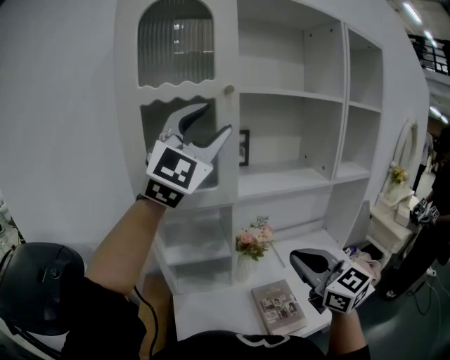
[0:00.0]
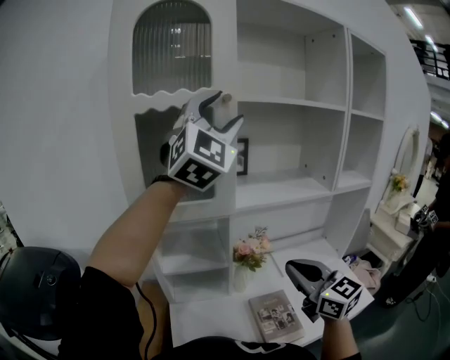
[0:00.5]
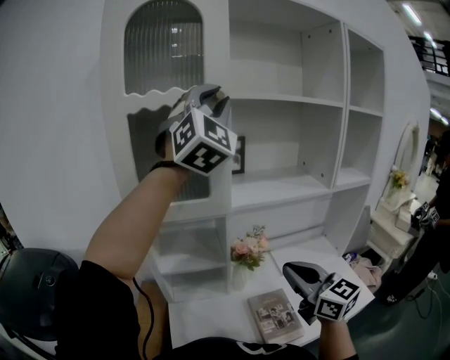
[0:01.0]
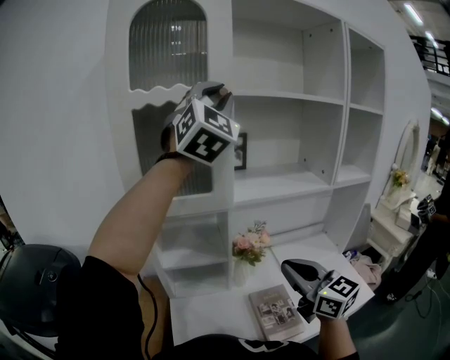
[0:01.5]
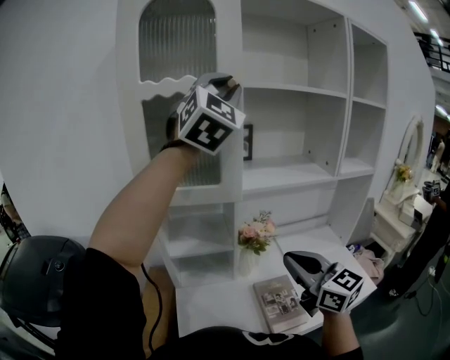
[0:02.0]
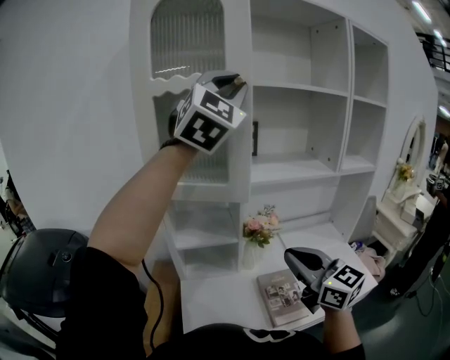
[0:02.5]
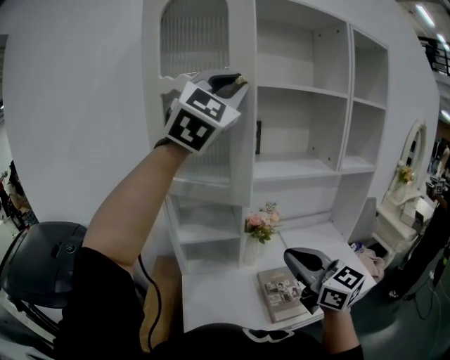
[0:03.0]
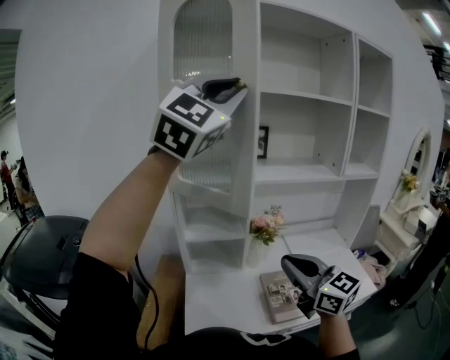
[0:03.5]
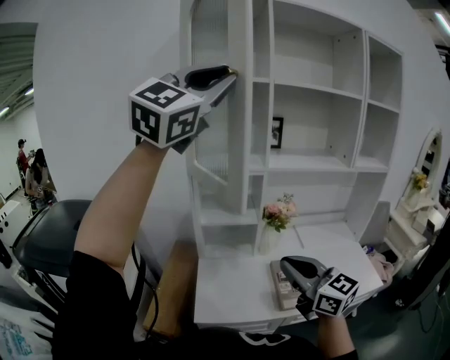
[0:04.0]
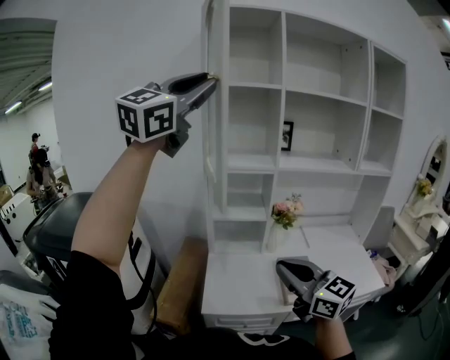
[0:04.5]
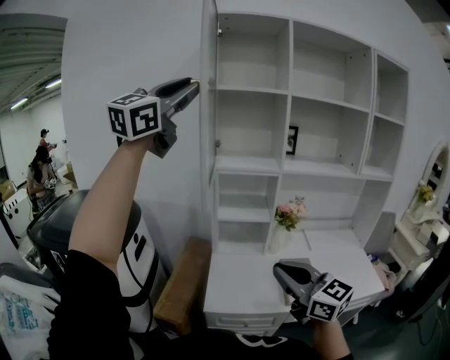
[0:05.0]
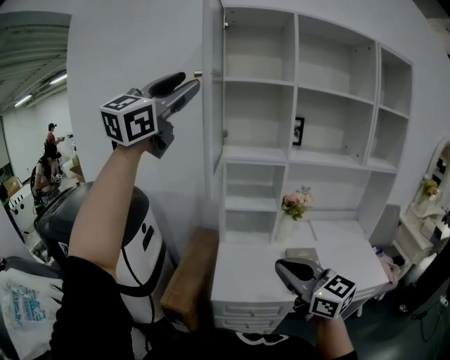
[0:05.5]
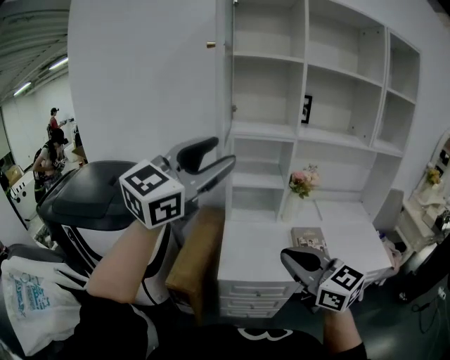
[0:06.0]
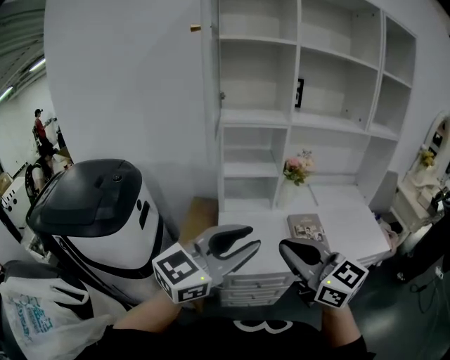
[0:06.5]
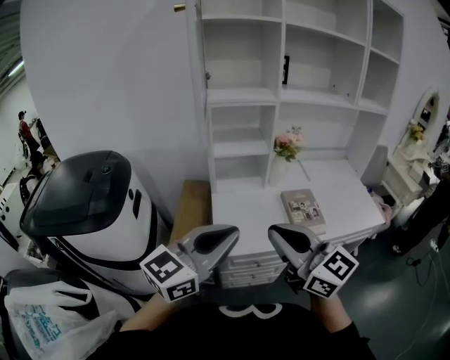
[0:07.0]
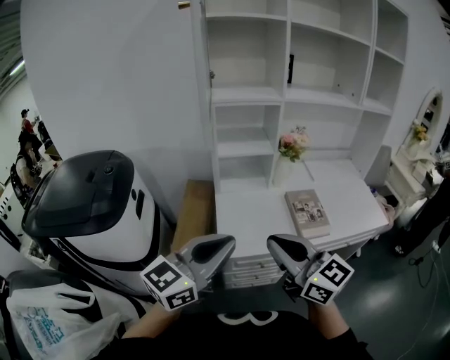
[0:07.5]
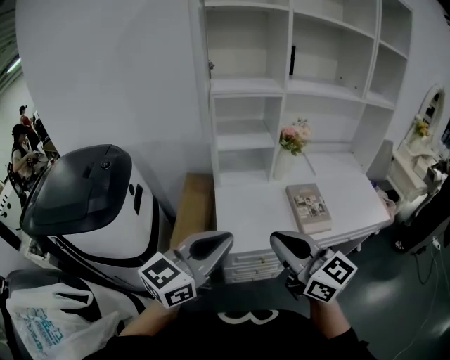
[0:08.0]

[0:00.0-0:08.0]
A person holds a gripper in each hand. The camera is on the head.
0:00.0 to 0:02.0: The left gripper heads upward and forward, covering roughly 10 cm, and closes its fingers.
0:02.0 to 0:04.0: The left gripper heads backward and to the left, covering approximately 25 cm, and swivels roughly 20 degrees, while the right gripper goes some 15 cm backward and to the left.
0:04.0 to 0:06.0: The left gripper goes about 30 cm downward, backward and to the left, turns by about 20 degrees, and opens up, while the right gripper goes some 15 cm backward and to the left.
0:06.0 to 0:08.0: The right gripper moves roughly 5 cm; the left gripper shifts about 25 cm downward, swivels approximately 30 degrees, and closes.

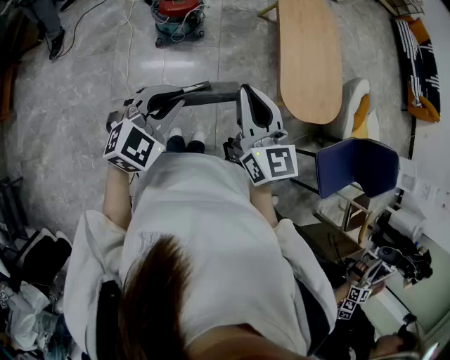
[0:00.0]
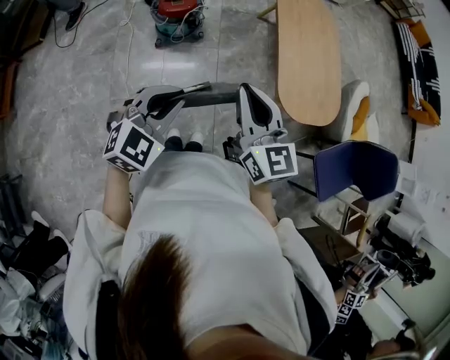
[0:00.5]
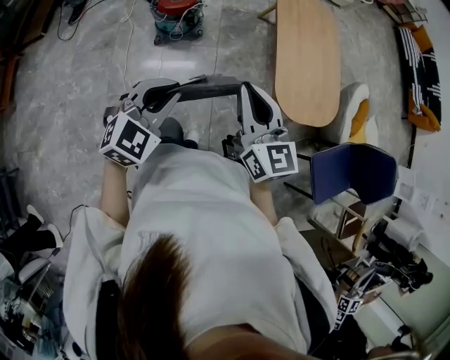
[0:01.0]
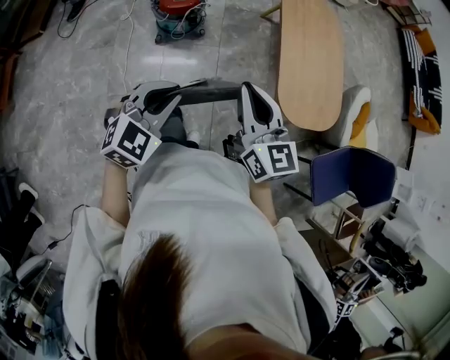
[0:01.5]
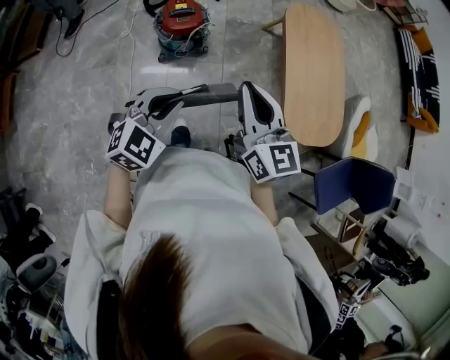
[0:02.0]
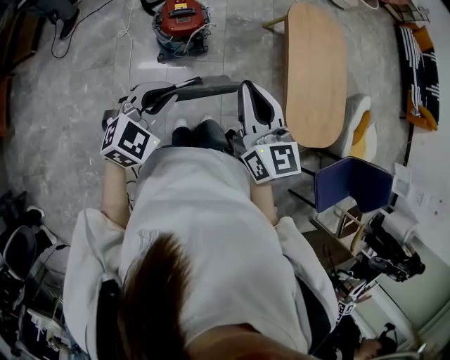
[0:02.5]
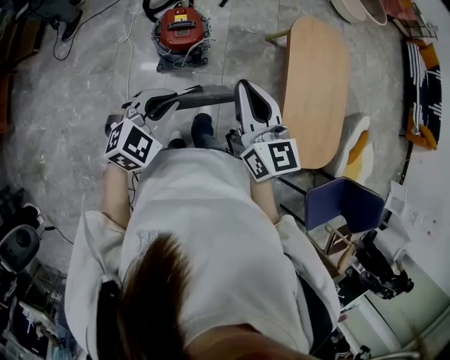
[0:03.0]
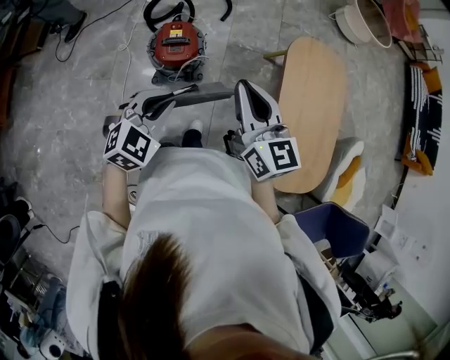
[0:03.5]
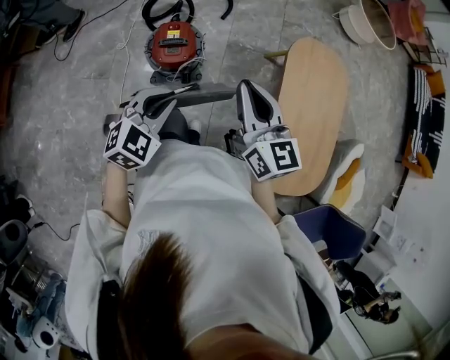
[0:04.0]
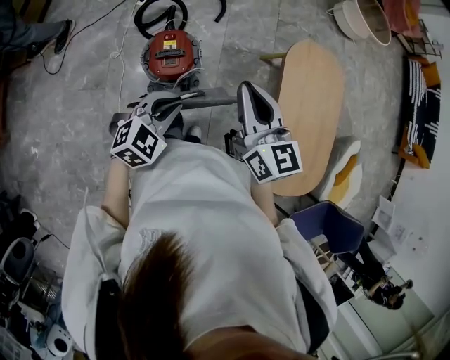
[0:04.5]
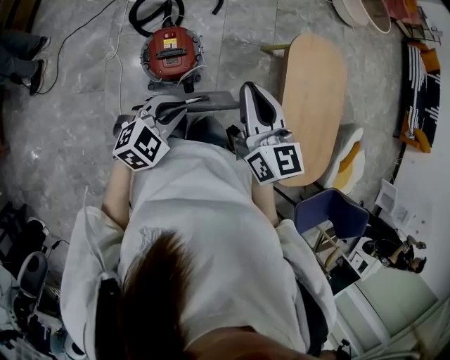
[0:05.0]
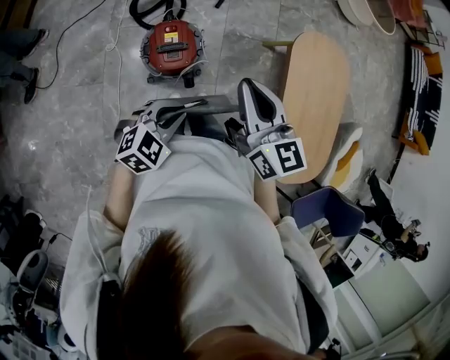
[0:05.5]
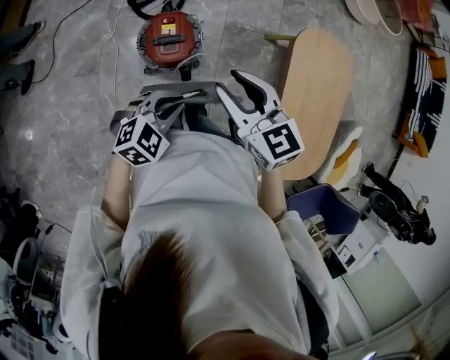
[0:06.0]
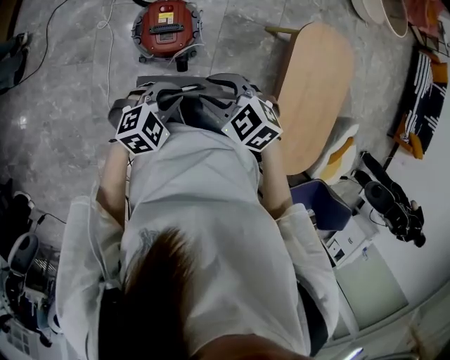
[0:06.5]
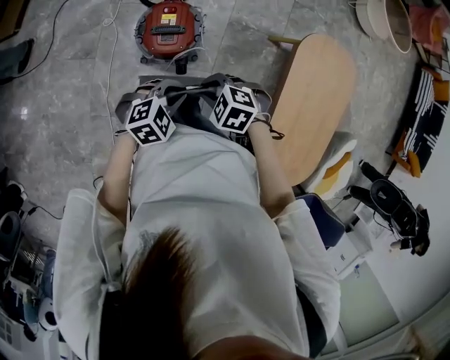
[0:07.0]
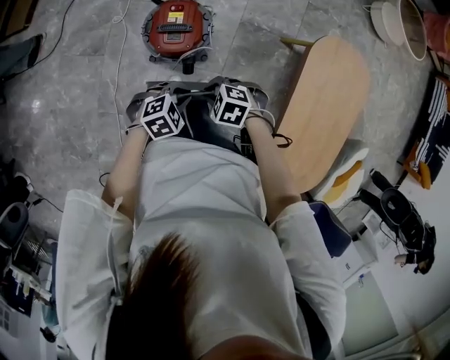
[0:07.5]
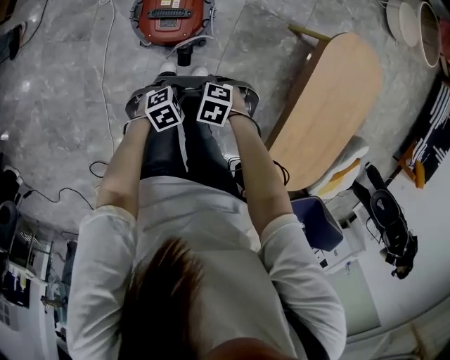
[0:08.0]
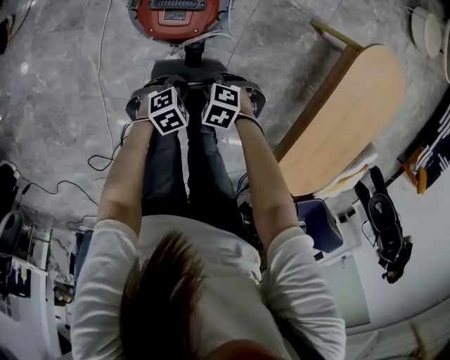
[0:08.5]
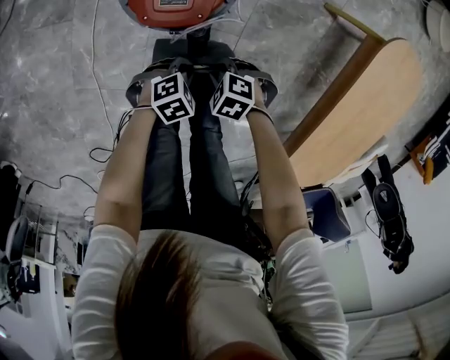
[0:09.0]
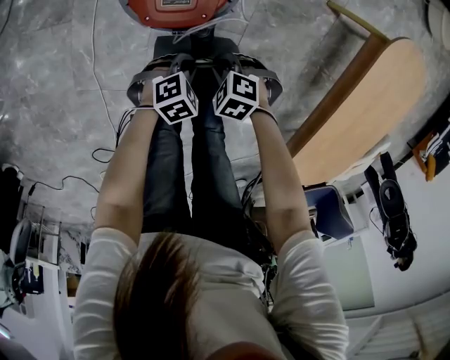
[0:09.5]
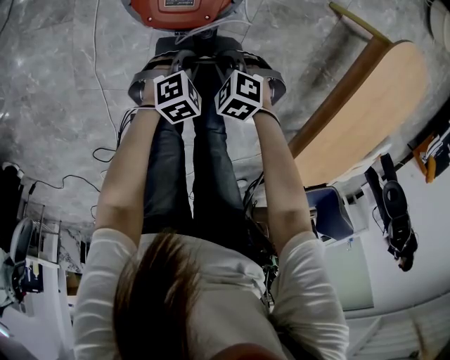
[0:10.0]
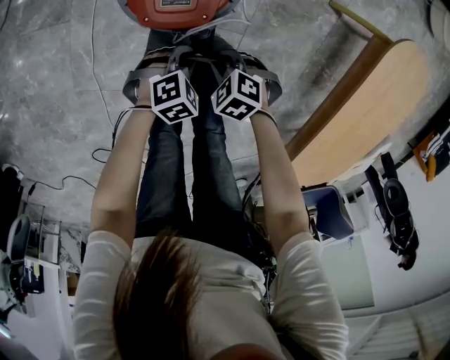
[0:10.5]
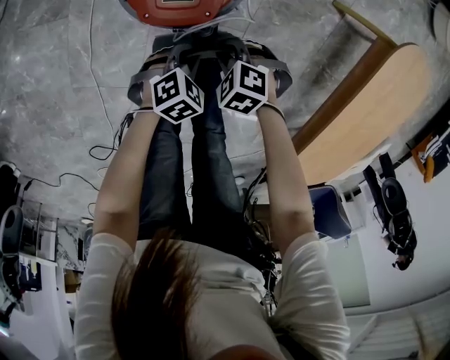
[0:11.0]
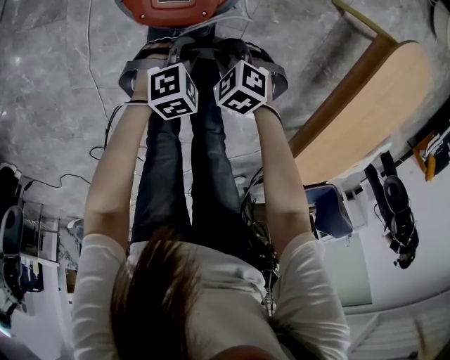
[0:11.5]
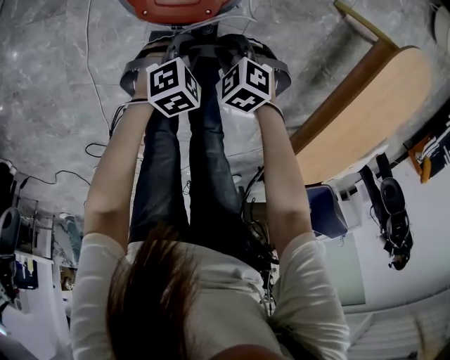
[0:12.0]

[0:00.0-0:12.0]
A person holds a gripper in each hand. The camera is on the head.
0:00.0 to 0:02.0: The two grippers go roughly 15 cm forward and to the left.
0:02.0 to 0:04.0: Both grippers travel together forward, approximately 25 cm.
0:04.0 to 0:06.0: The left gripper travels downward and forward by some 10 cm; the right gripper shifts about 15 cm to the left, forward and downward, rotates about 30 degrees, and opens up.
0:06.0 to 0:08.0: The two grippers go approximately 35 cm downward. The right gripper tips its fingers downward by about 40 degrees, and closes its fingers, while the left gripper changes its angle by about 30 degrees.
0:08.0 to 0:10.0: Both grippers move downward, about 15 cm.
0:10.0 to 0:12.0: The grippers make only small movements.

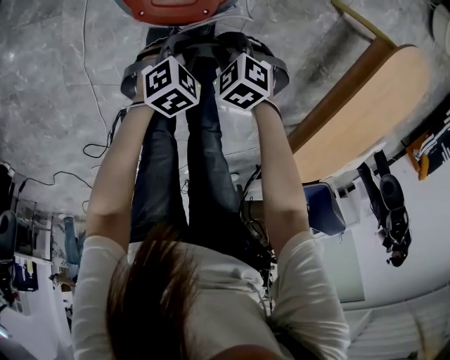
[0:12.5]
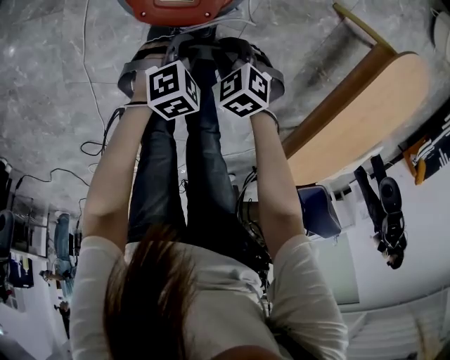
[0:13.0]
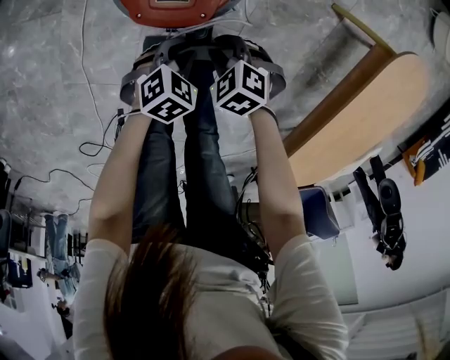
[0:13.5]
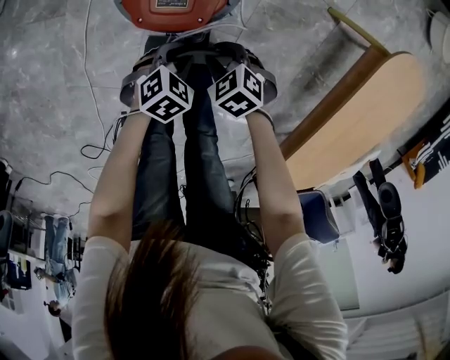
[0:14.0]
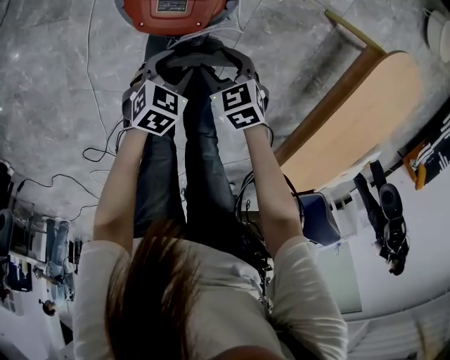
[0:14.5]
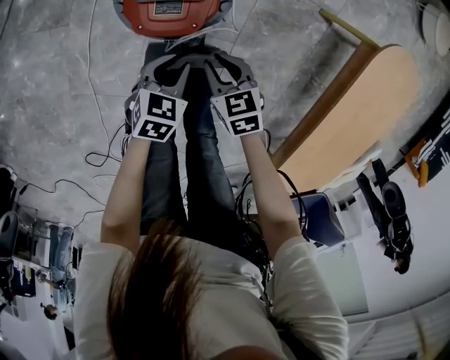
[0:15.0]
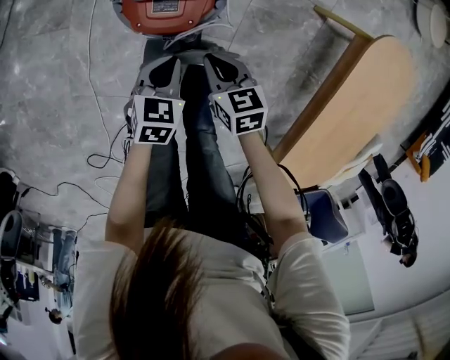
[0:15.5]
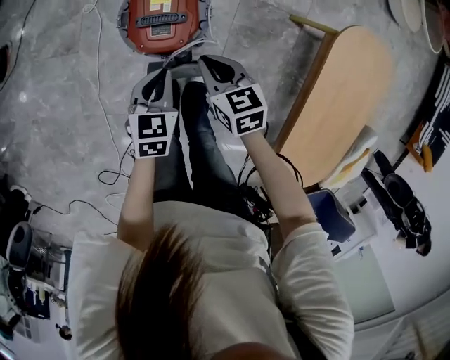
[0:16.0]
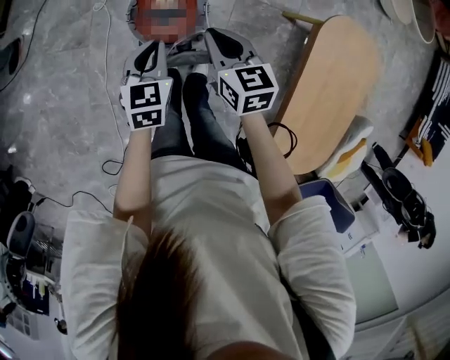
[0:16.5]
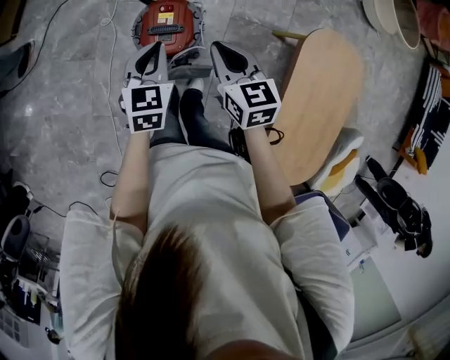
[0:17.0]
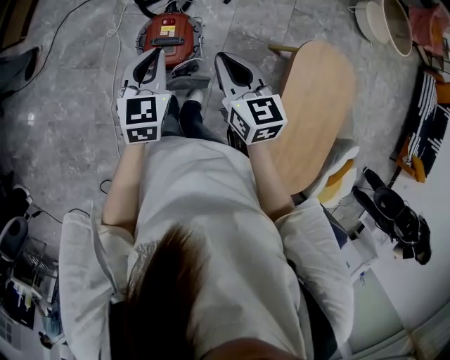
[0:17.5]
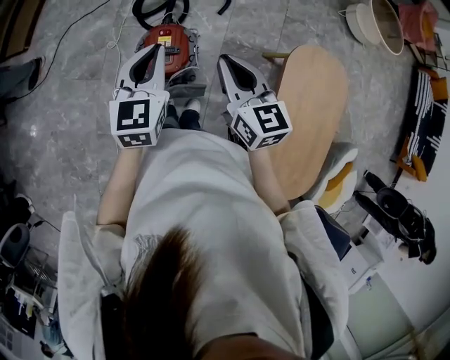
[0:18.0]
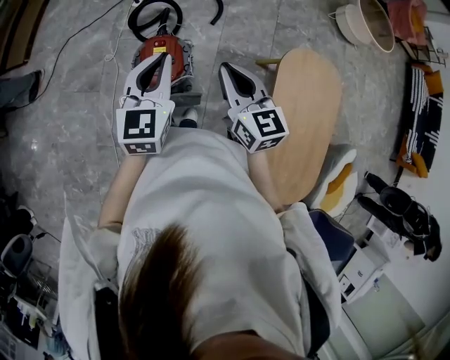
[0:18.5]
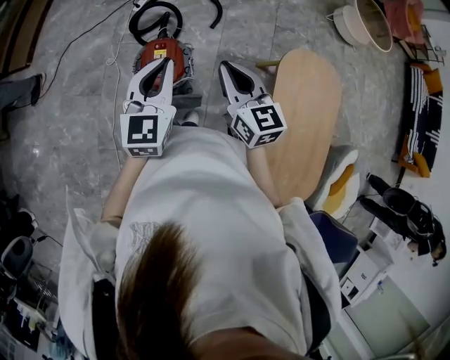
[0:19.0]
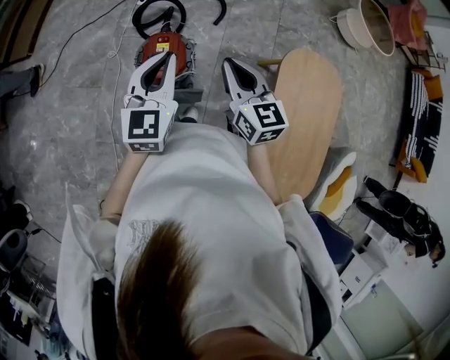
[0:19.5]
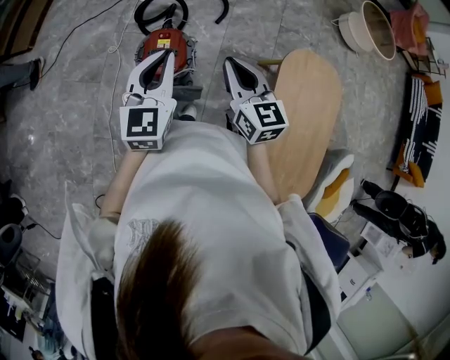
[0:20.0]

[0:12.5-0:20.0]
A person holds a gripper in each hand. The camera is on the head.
0:12.5 to 0:14.5: The right gripper changes its angle by some 30 degrees, and opens up; the left gripper opens up.
0:14.5 to 0:16.5: Both grippers travel together upward, approximately 30 cm. The left gripper turns by approximately 40 degrees, and closes its fingers, while the right gripper changes its angle by approximately 40 degrees, and closes.
0:16.5 to 0:18.0: The grippers both shift upward by some 25 cm. The left gripper rotates some 20 degrees.
0:18.0 to 0:20.0: The right gripper changes place by some 5 cm, while the left gripper goes some 5 cm backward.
